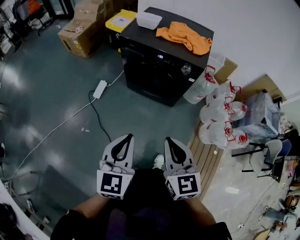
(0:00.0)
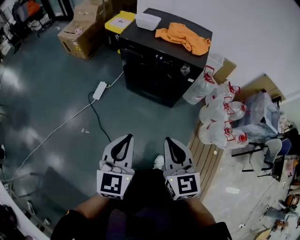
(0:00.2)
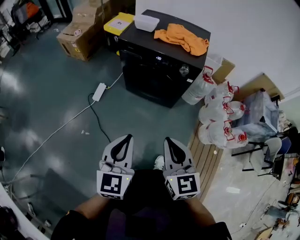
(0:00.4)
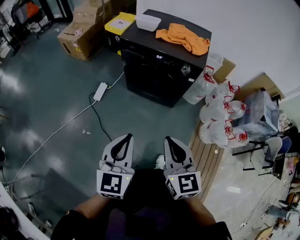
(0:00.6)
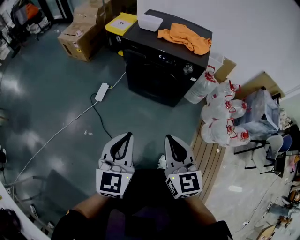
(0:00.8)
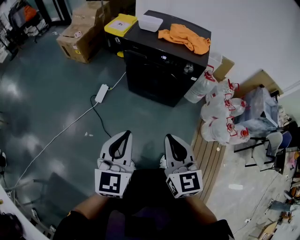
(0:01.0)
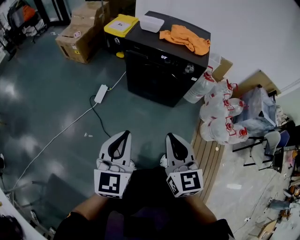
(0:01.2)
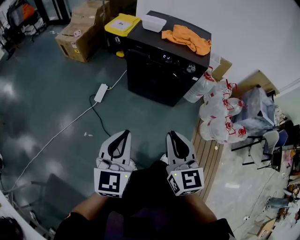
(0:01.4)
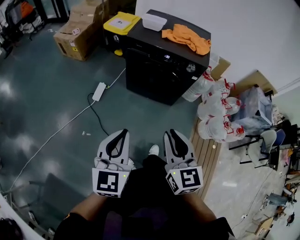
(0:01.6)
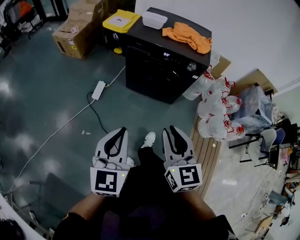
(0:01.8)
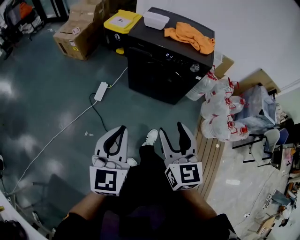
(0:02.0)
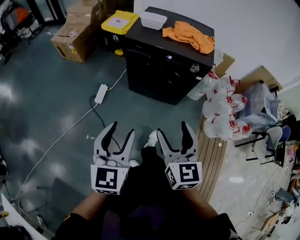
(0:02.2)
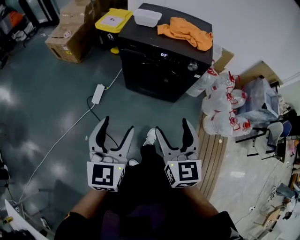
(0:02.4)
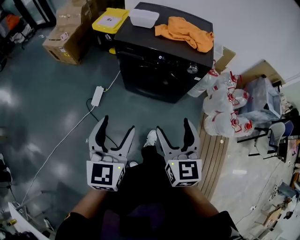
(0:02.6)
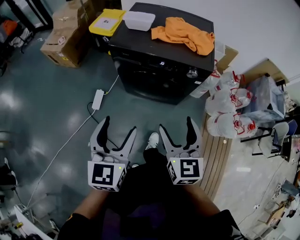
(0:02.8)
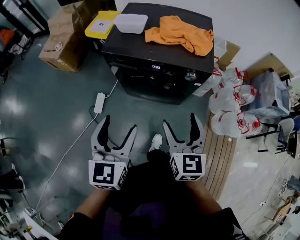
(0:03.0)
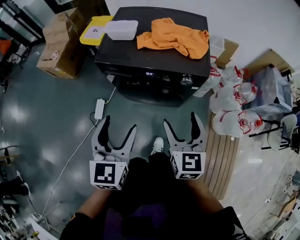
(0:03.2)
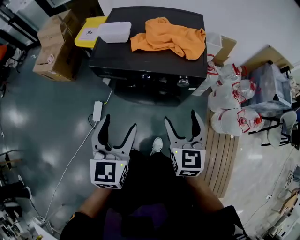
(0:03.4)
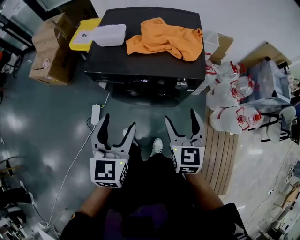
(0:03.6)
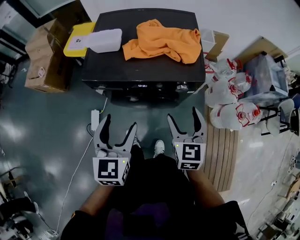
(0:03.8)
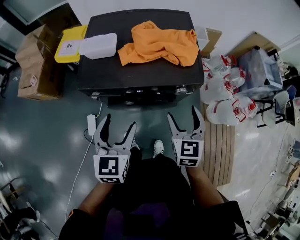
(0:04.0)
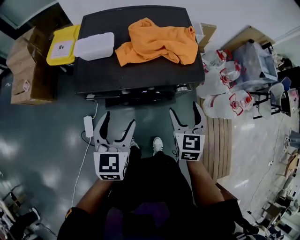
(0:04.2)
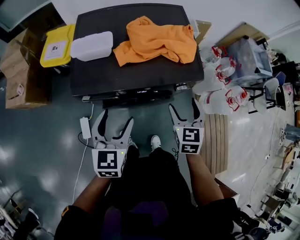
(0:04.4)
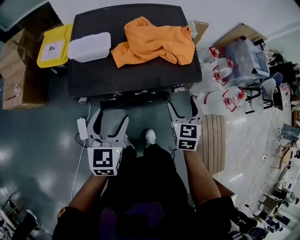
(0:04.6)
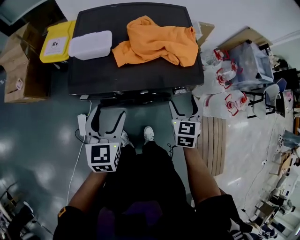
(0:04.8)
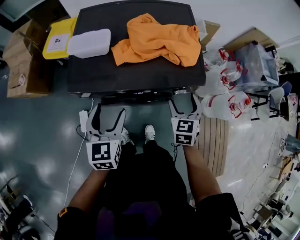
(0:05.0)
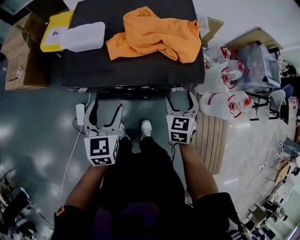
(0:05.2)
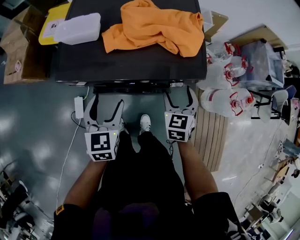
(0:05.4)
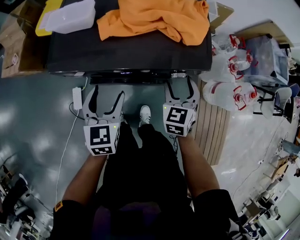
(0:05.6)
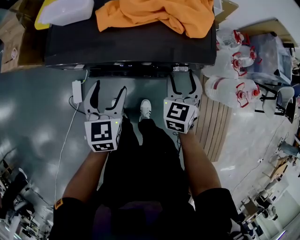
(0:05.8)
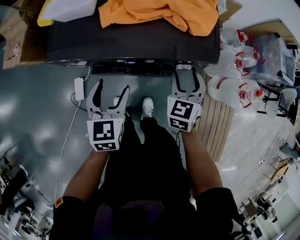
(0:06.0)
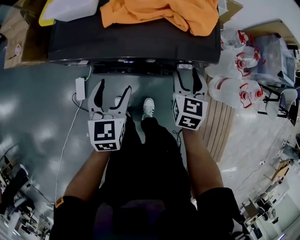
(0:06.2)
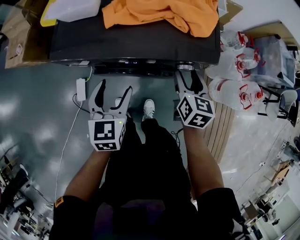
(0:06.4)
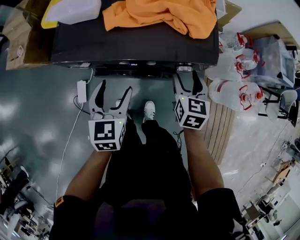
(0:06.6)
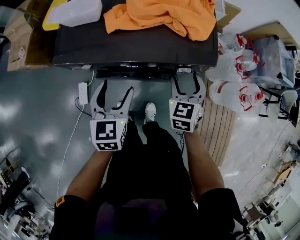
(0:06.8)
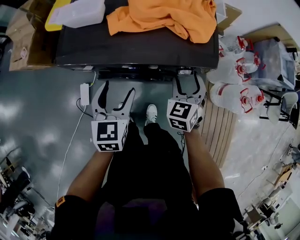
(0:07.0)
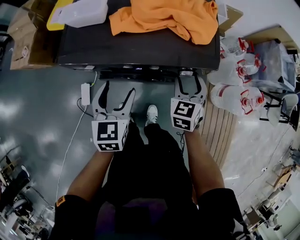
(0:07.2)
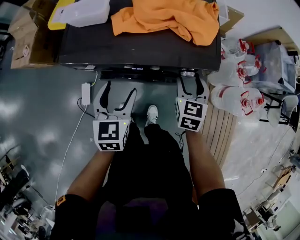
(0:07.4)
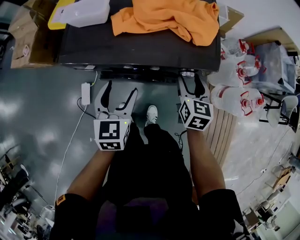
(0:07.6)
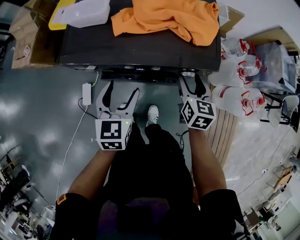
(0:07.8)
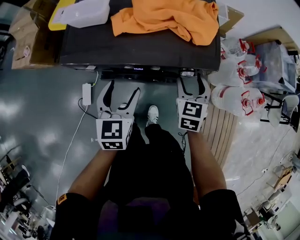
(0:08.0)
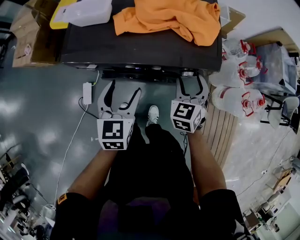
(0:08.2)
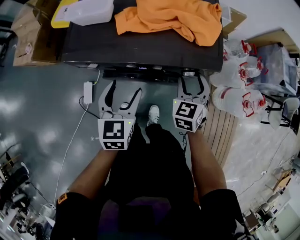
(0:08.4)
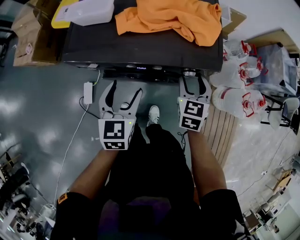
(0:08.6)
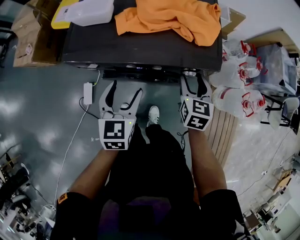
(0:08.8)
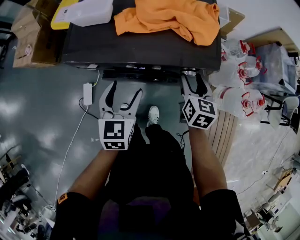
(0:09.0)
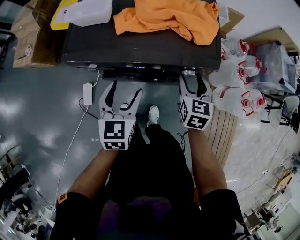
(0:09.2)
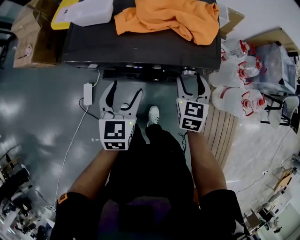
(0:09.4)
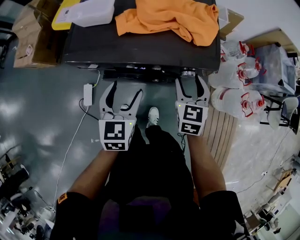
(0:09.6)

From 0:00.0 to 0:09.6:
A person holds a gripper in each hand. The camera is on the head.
From 0:00.0 to 0:01.6: The grippers both shift to the left by some 10 cm.
From 0:01.6 to 0:03.2: Both grippers travel together forward, approximately 30 cm. The left gripper opens up; the right gripper opens up.
From 0:03.2 to 0:04.8: The left gripper travels forward, downward and to the left by roughly 25 cm. The right gripper travels forward and downward by approximately 20 cm, and changes its angle by roughly 30 degrees.
From 0:04.8 to 0:06.4: The right gripper moves downward, roughly 5 cm, and changes its angle by some 30 degrees, while the left gripper heads downward and to the right, covering about 10 cm.
From 0:06.4 to 0:08.0: The right gripper changes its angle by about 20 degrees.

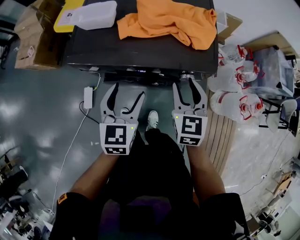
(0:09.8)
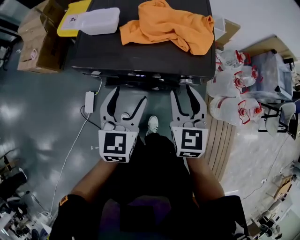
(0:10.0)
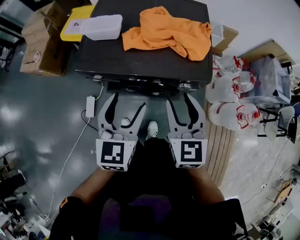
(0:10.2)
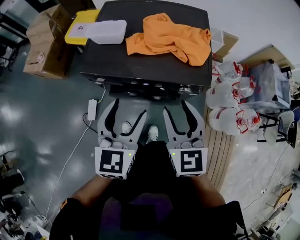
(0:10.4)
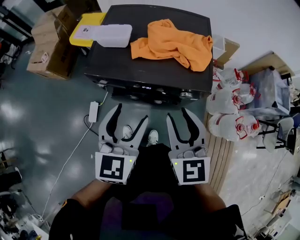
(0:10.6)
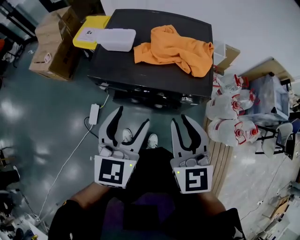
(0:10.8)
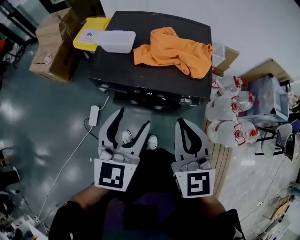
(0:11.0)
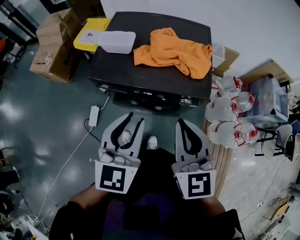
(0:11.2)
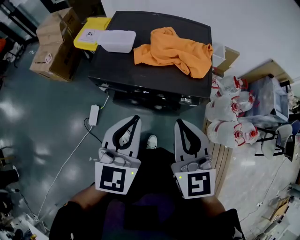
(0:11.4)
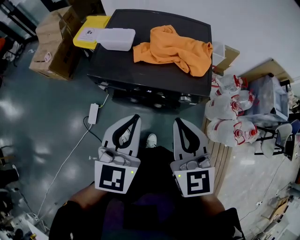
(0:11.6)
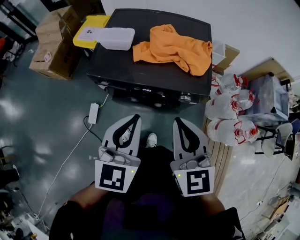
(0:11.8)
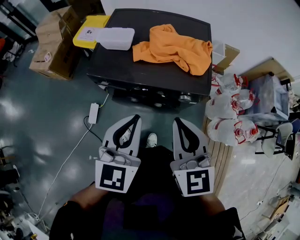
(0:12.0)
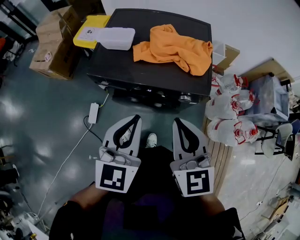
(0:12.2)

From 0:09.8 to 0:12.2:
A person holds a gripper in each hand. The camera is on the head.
From 0:09.8 to 0:11.0: The grippers both shift upward and backward by approximately 20 cm. The right gripper closes.
From 0:11.0 to 0:12.2: The left gripper closes its fingers.

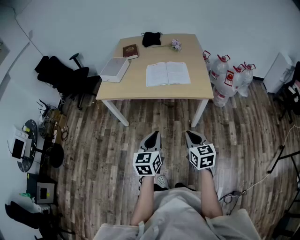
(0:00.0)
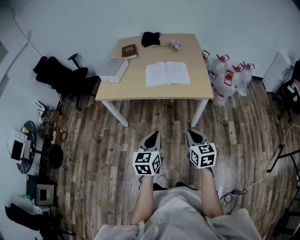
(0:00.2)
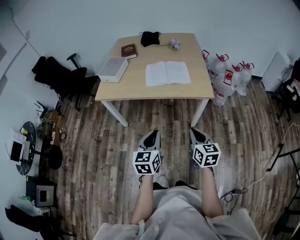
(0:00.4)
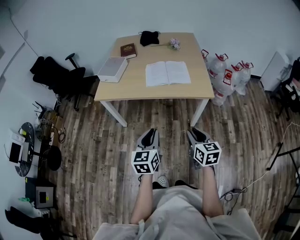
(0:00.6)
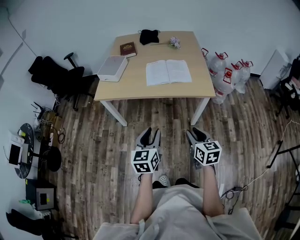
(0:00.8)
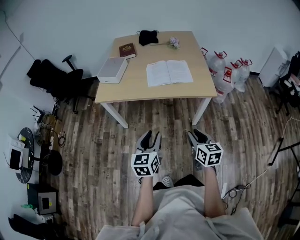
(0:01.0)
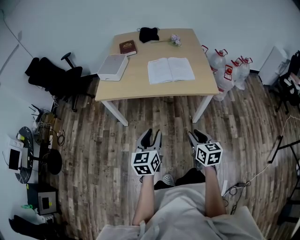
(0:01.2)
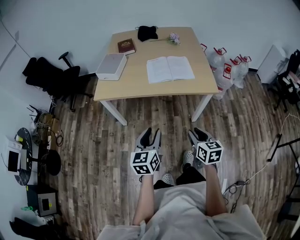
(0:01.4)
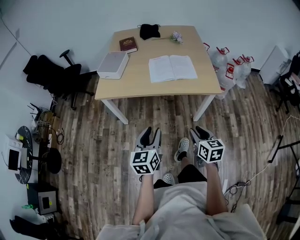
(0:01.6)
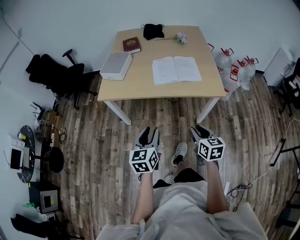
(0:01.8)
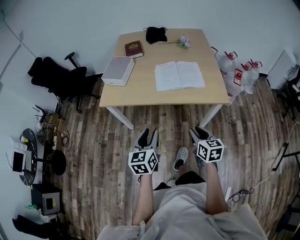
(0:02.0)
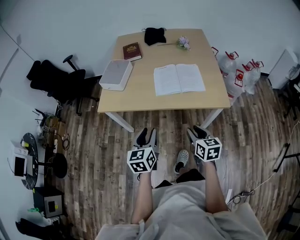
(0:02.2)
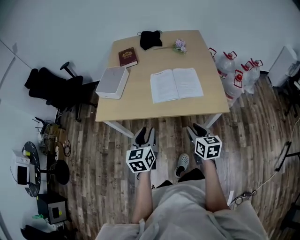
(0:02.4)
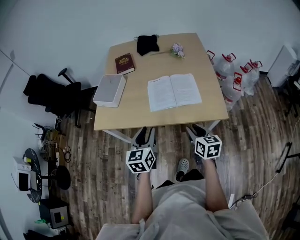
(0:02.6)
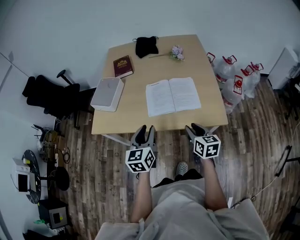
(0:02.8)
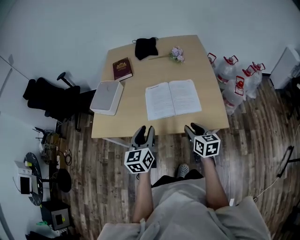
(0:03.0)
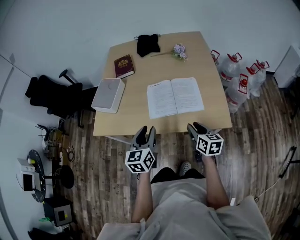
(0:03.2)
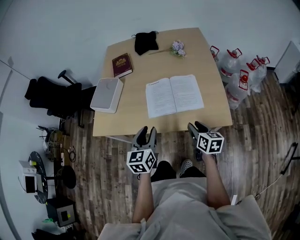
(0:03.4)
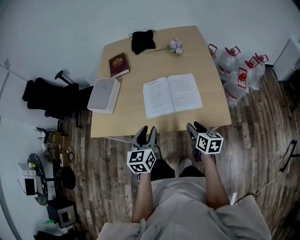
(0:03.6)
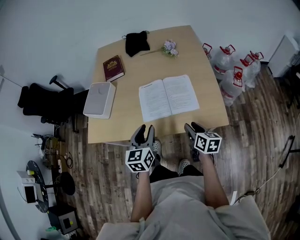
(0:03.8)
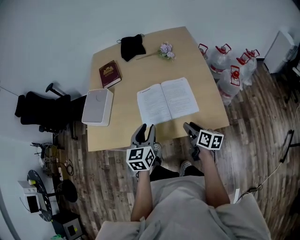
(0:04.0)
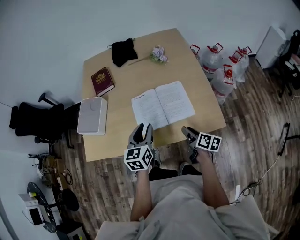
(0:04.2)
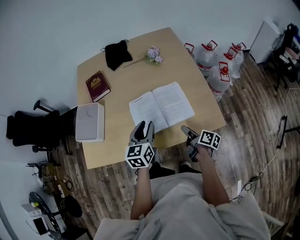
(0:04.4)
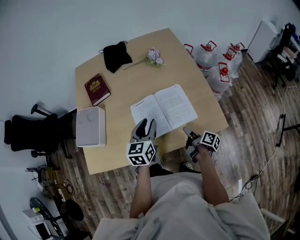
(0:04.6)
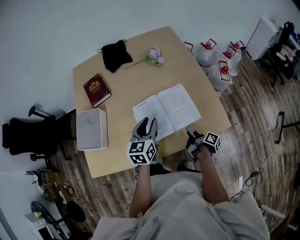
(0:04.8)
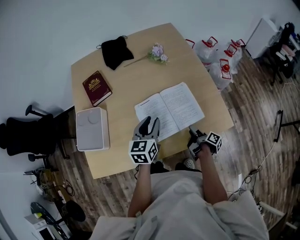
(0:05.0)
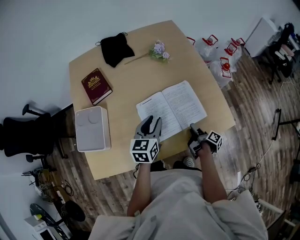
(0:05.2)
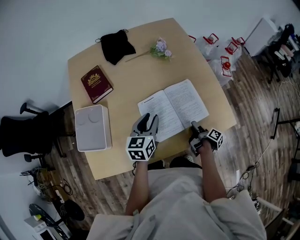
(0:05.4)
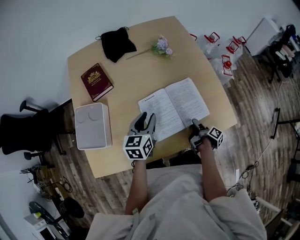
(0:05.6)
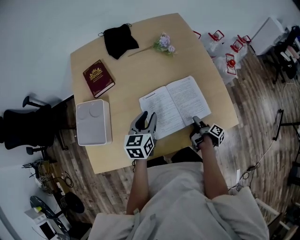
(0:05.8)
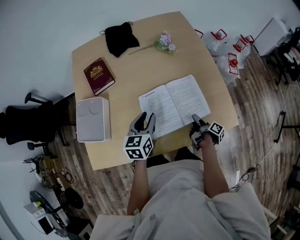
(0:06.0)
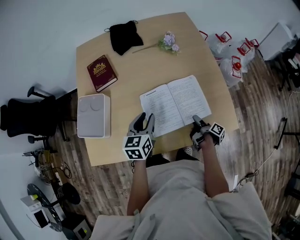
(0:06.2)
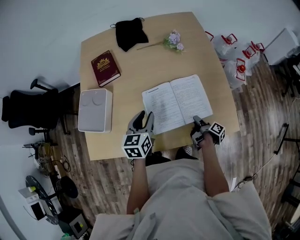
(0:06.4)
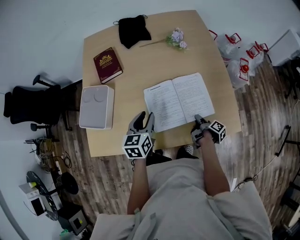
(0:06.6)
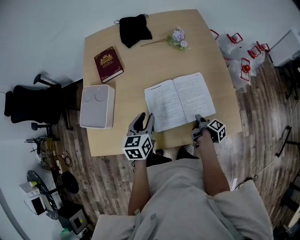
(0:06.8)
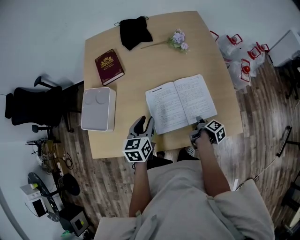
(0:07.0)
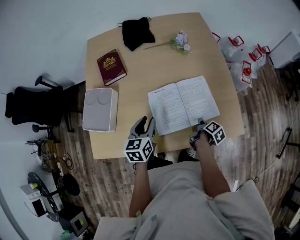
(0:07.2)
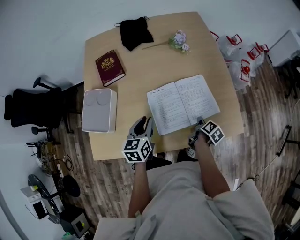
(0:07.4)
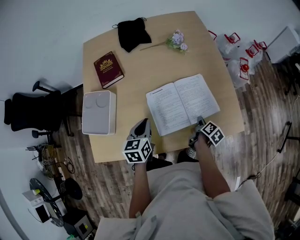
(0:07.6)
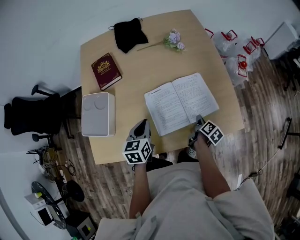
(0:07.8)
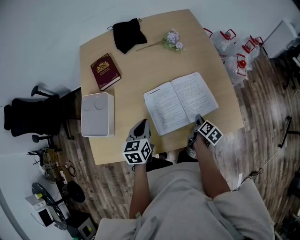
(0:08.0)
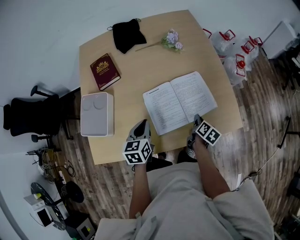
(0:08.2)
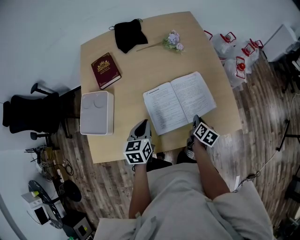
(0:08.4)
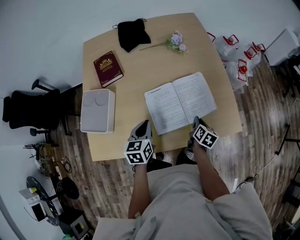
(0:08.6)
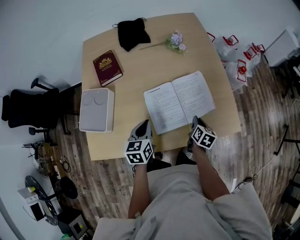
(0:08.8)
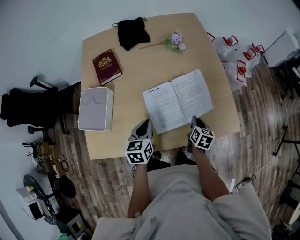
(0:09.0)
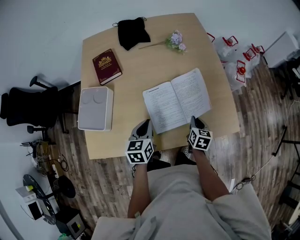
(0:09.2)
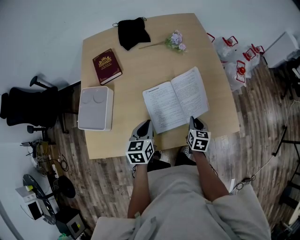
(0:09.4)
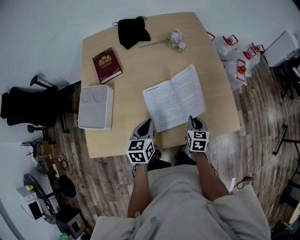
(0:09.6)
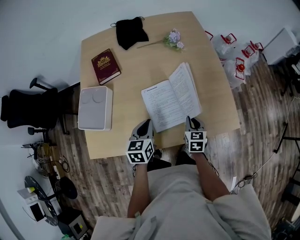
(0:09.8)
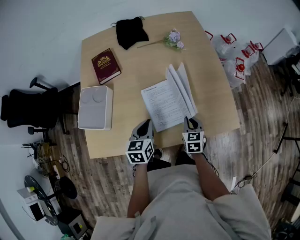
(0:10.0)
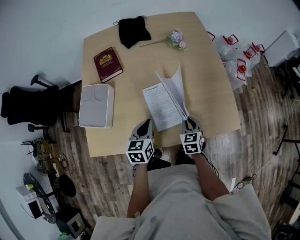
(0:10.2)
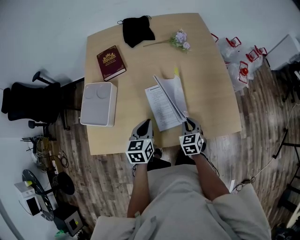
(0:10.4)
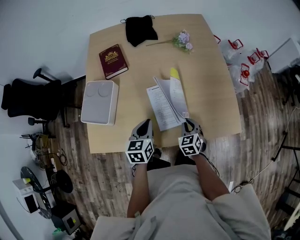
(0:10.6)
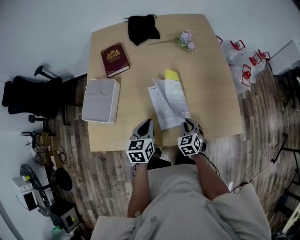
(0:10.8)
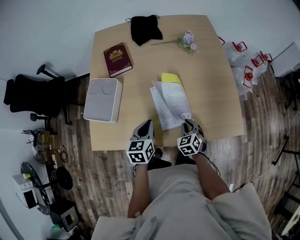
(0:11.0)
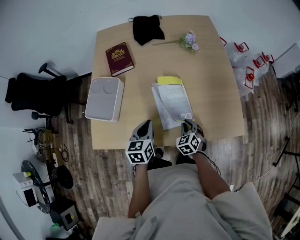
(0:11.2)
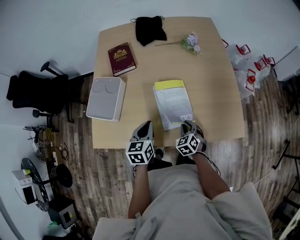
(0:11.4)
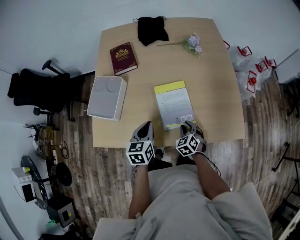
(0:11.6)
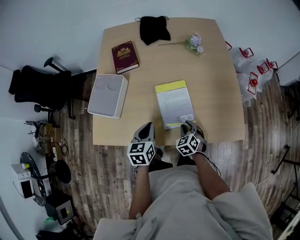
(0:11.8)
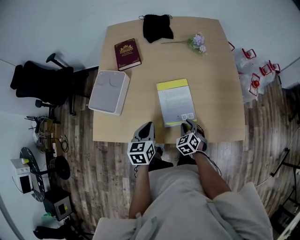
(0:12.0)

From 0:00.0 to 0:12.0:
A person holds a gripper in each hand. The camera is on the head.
From 0:00.0 to 0:01.6: The left gripper is displaced to the left and forward by approximately 10 cm, and opens up, while the right gripper goes roughly 5 cm to the left, and opens.
From 0:01.6 to 0:03.0: The two grippers go about 30 cm forward.
From 0:03.0 to 0:04.4: The left gripper goes roughly 15 cm forward; the right gripper travels downward and forward by about 10 cm, and rotates around the line of its fingers by roughly 50 degrees, clockwise from behind.
From 0:04.4 to 0:06.0: The left gripper heads to the left and forward, covering some 10 cm; the right gripper shifts some 10 cm downward and forward, and turns by some 30 degrees.
From 0:06.0 to 0:07.6: The right gripper changes its angle by roughly 40 degrees, and closes up. The left gripper ends up some 5 cm from where it was, and closes its fingers.
From 0:07.6 to 0:09.0: The right gripper changes its angle by some 40 degrees.
From 0:09.0 to 0:10.4: The right gripper heads to the left, covering roughly 10 cm, and rotates around the line of its fingers by roughly 40 degrees, counterclockwise from behind.
From 0:10.4 to 0:12.0: The right gripper ends up roughly 5 cm from where it was, and turns by approximately 20 degrees; the left gripper changes place by some 5 cm.
